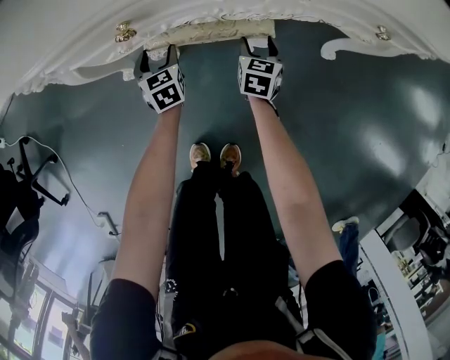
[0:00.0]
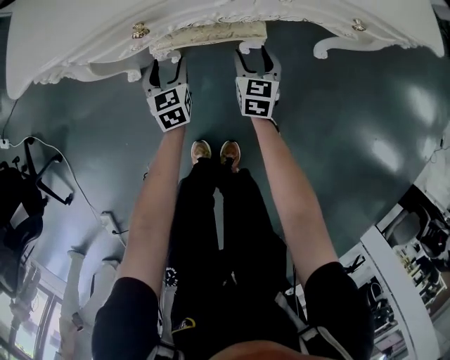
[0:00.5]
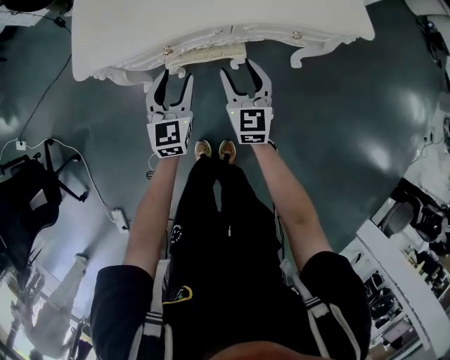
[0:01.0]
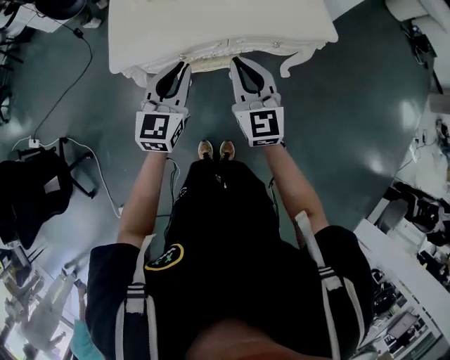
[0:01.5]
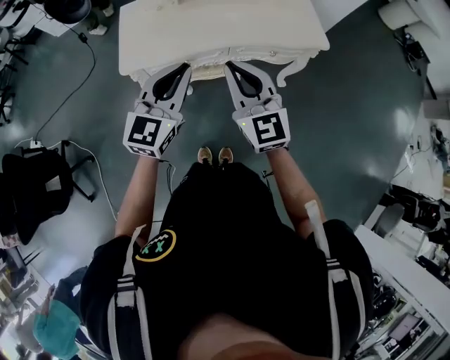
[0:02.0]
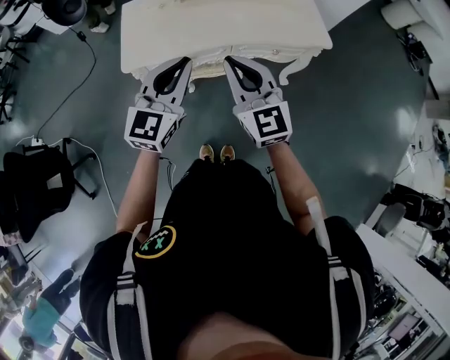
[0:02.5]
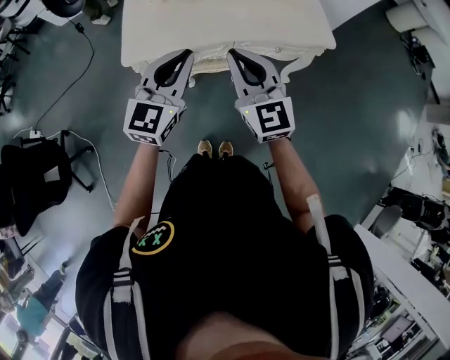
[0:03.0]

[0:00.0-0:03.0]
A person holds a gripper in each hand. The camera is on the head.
0:00.0 to 0:01.5: Both grippers travel together upward, some 70 cm. The left gripper turns by about 50 degrees, and closes up, while the right gripper points its fingers about 30 degrees further upward, and closes up.
0:01.5 to 0:03.0: Both grippers travel together upward, some 10 cm.

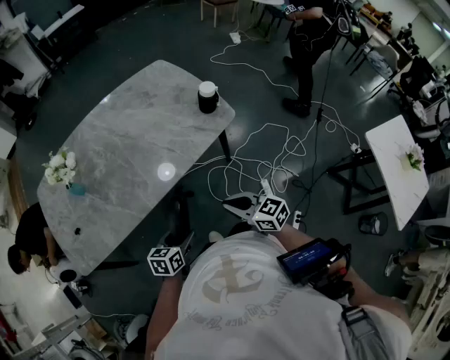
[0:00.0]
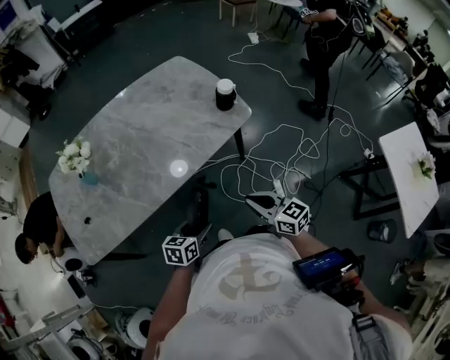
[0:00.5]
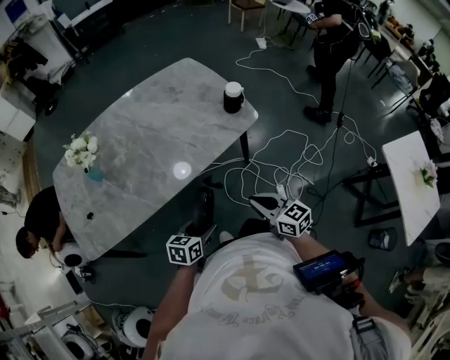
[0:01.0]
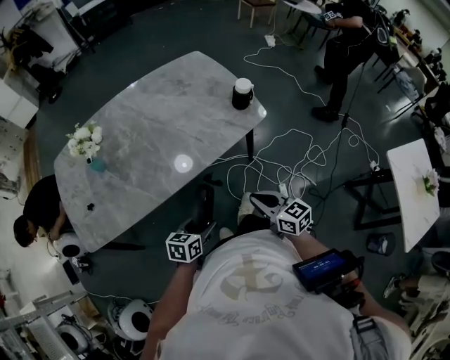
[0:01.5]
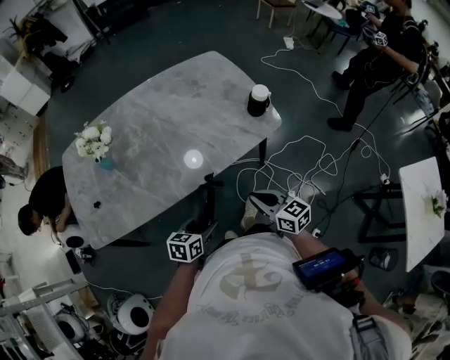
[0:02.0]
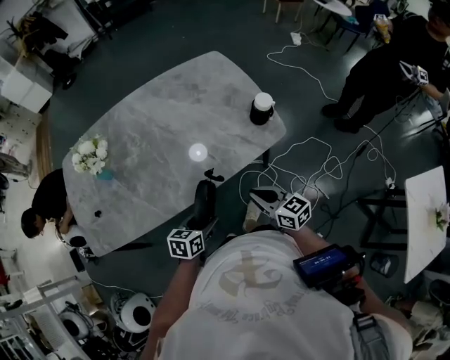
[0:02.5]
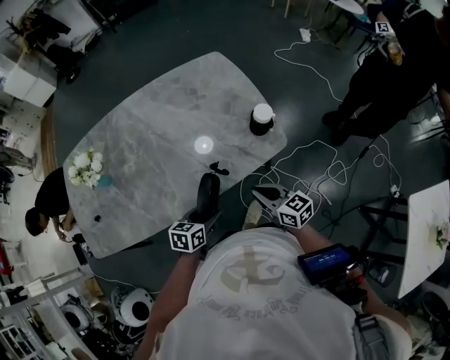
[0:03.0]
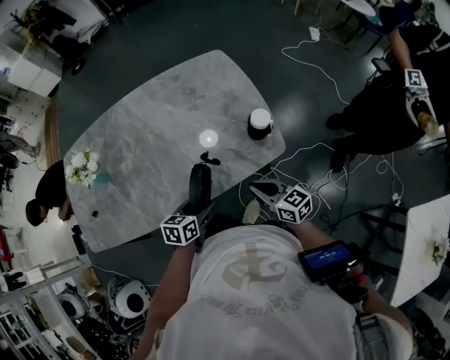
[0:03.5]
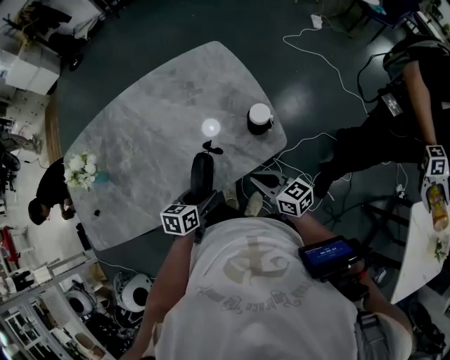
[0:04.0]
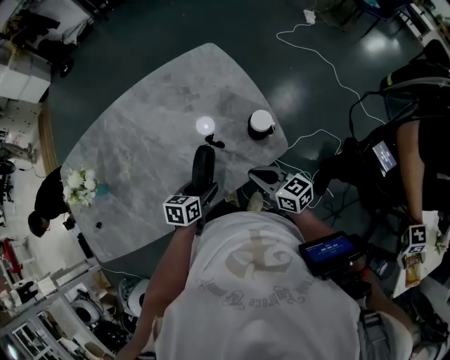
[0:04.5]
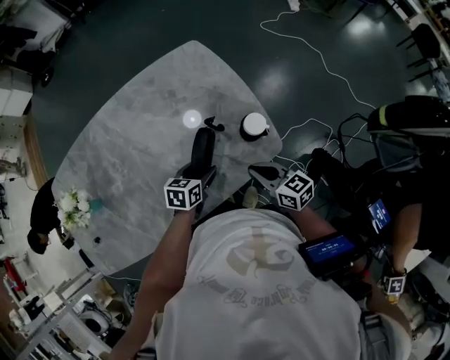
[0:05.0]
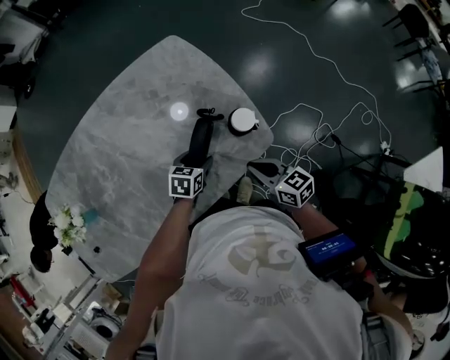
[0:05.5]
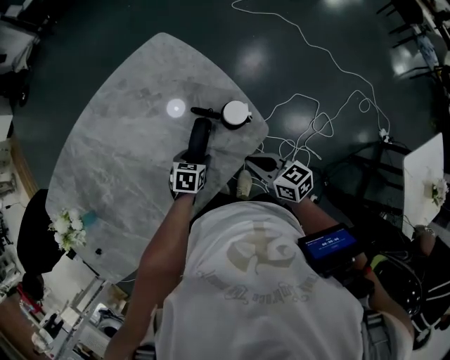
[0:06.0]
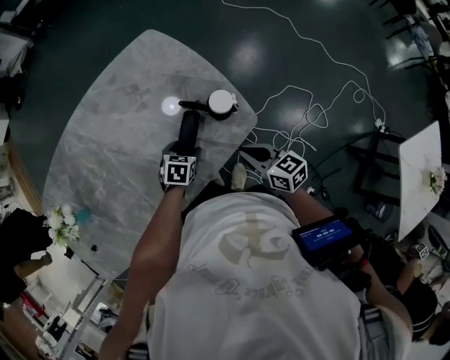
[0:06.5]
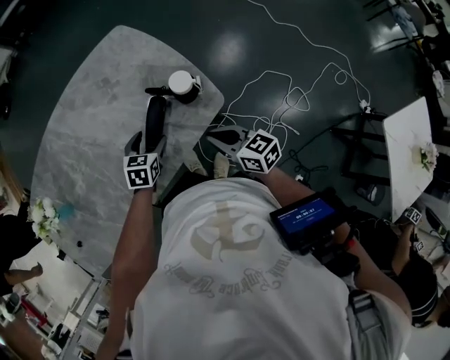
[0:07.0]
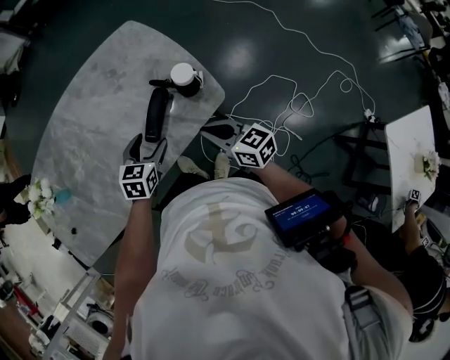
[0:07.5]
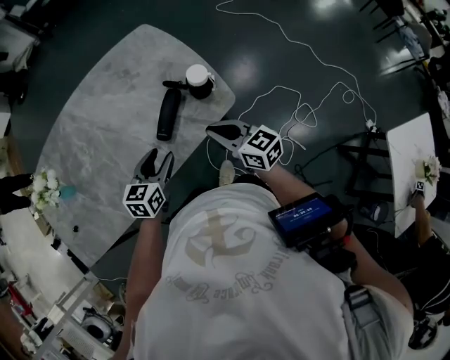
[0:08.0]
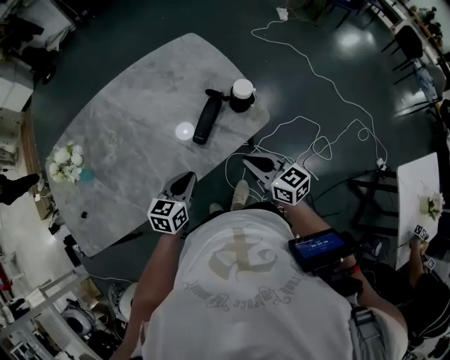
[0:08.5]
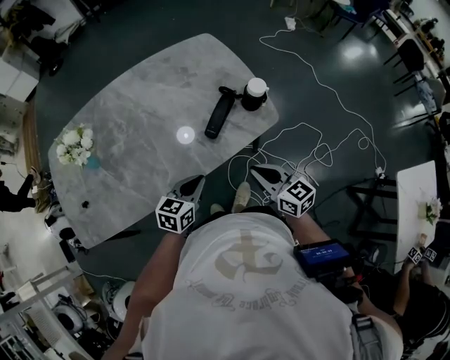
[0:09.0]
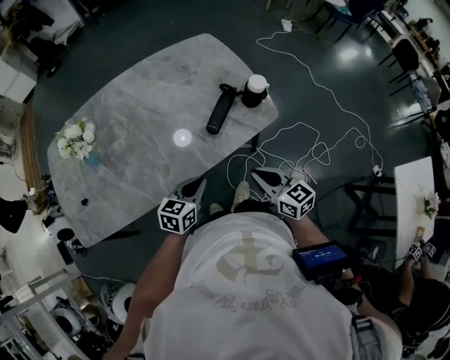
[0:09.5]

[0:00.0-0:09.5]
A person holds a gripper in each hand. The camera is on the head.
0:00.0 to 0:02.0: The right gripper heads forward, covering roughly 5 cm.
0:02.0 to 0:04.0: Both grippers travel together forward and to the right, some 20 cm.
0:04.0 to 0:05.5: The right gripper shifts about 5 cm forward, while the left gripper goes approximately 15 cm forward and downward, and swivels some 20 degrees.
0:05.5 to 0:07.5: The left gripper travels upward and backward by about 10 cm, while the right gripper changes place by approximately 5 cm.
0:07.5 to 0:09.5: The grippers both shift backward and to the left by approximately 15 cm. The left gripper rotates roughly 20 degrees, and closes up.

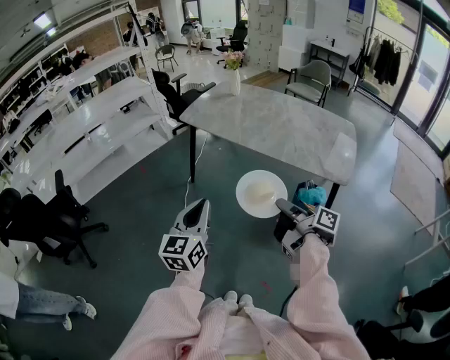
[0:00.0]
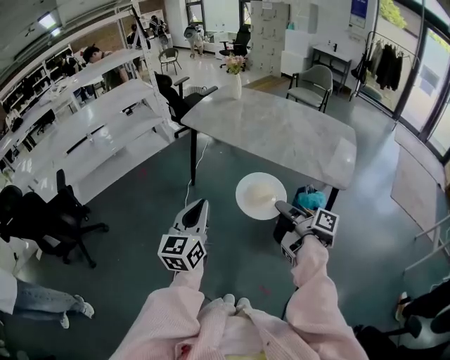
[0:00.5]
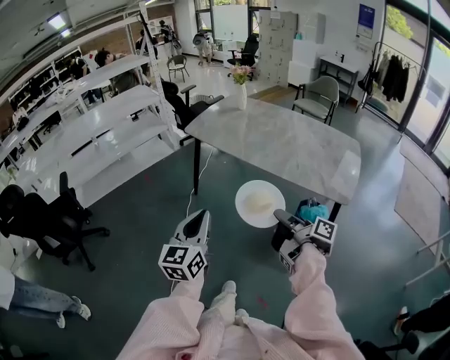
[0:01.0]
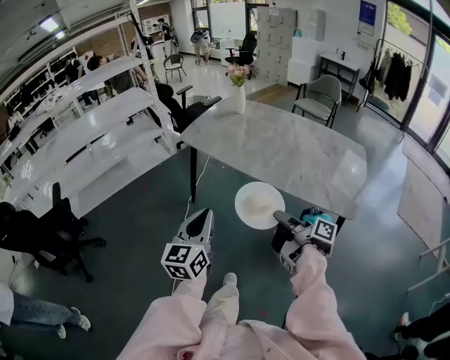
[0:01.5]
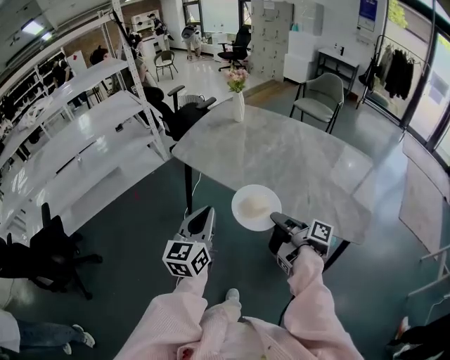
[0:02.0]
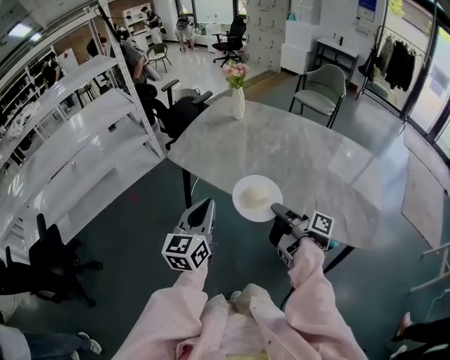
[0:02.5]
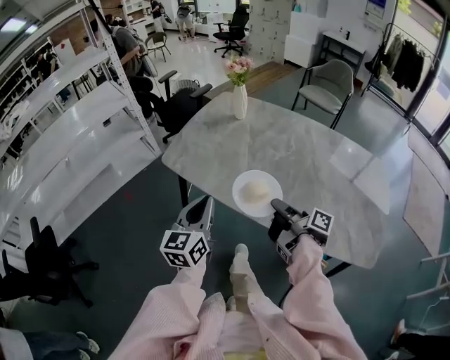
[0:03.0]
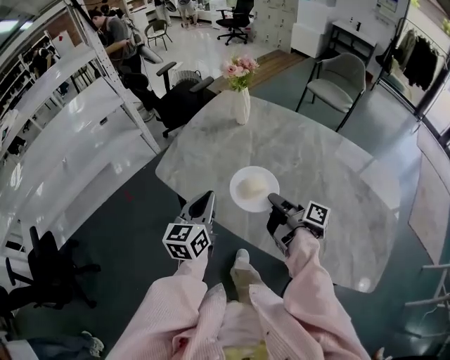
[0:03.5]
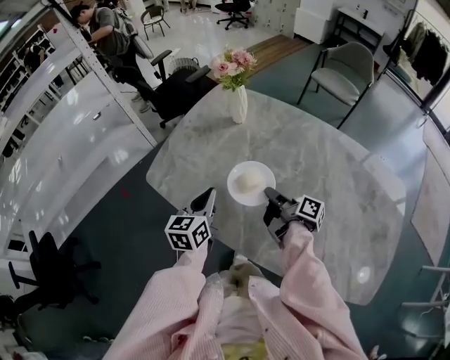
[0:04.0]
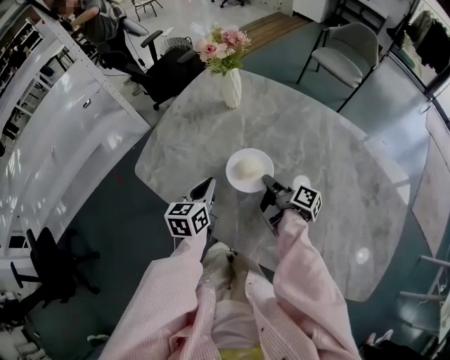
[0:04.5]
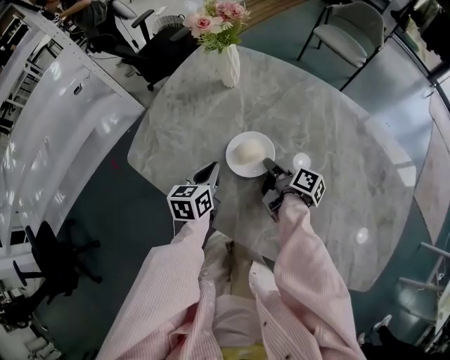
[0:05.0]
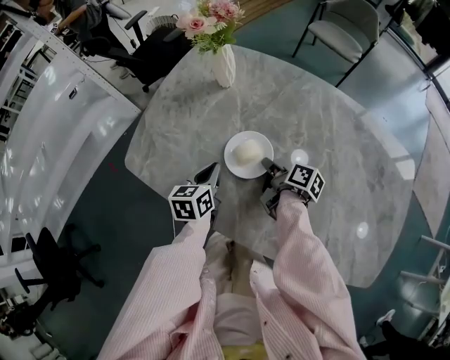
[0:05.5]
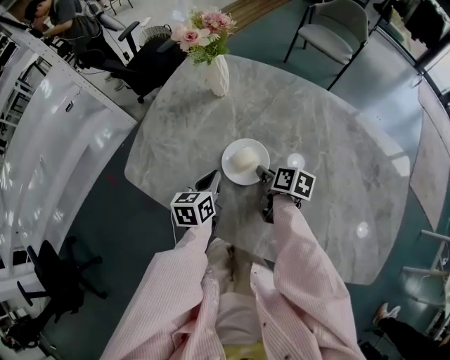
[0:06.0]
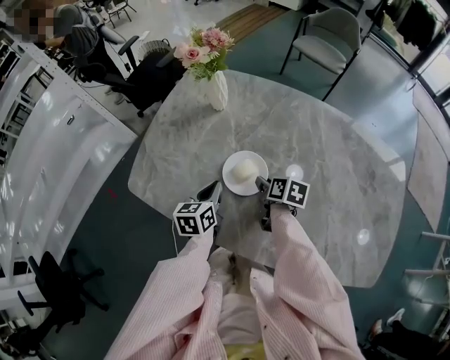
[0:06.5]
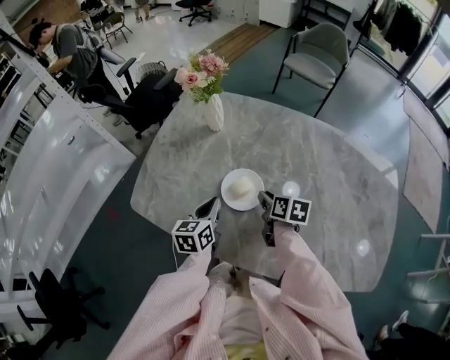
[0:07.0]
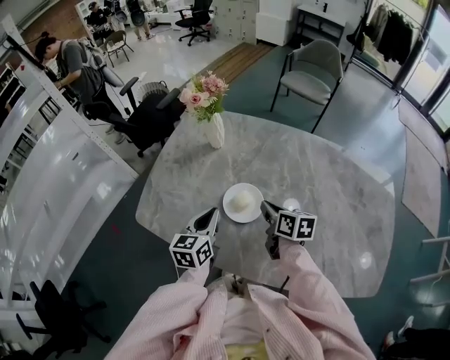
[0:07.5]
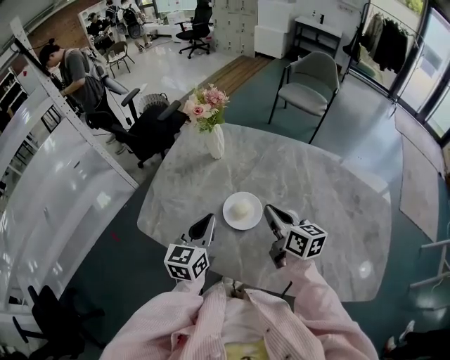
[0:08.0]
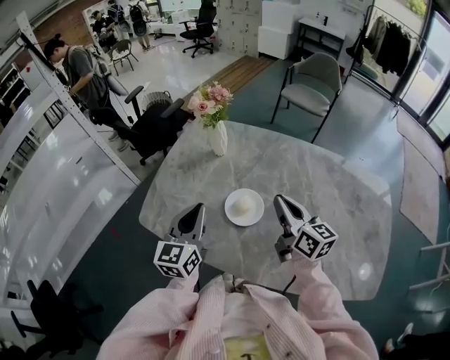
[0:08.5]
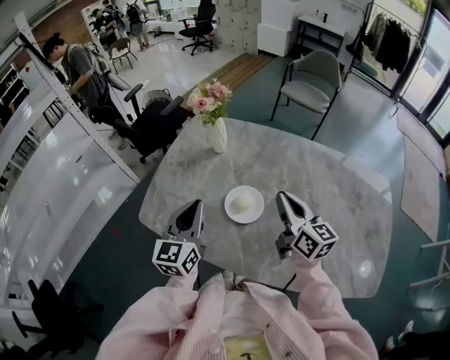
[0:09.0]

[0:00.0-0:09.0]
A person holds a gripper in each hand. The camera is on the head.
0:00.0 to 0:02.0: The left gripper ends up approximately 30 cm from where it was.
0:02.0 to 0:04.5: The left gripper shifts by some 50 cm, and turns by some 30 degrees.
0:07.0 to 0:09.0: The left gripper shifts approximately 15 cm upward, and rotates roughly 30 degrees.

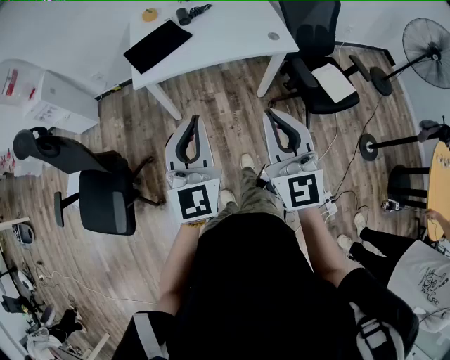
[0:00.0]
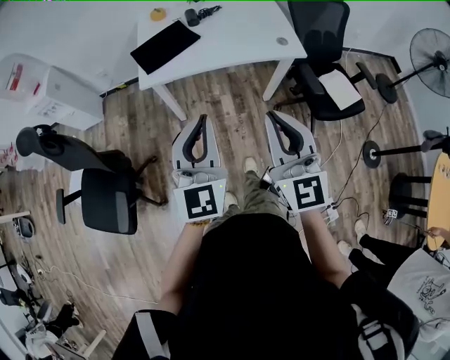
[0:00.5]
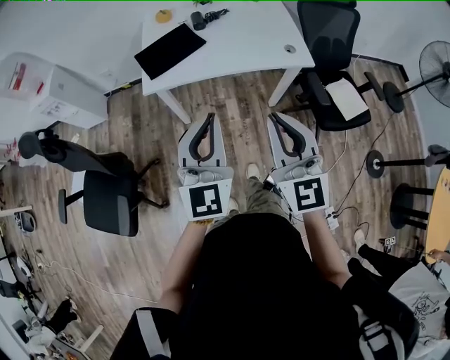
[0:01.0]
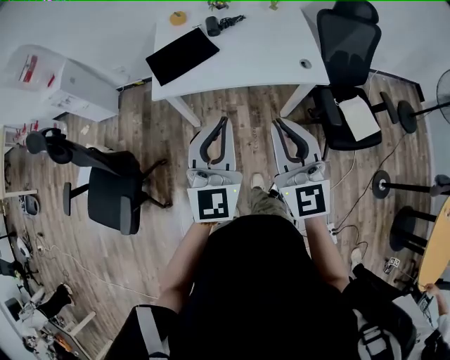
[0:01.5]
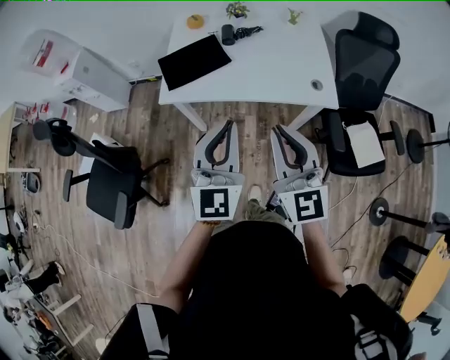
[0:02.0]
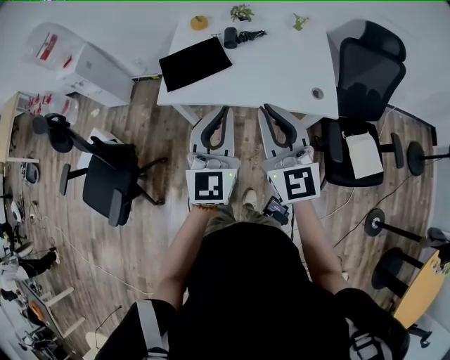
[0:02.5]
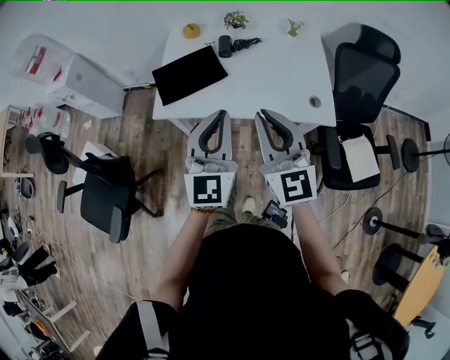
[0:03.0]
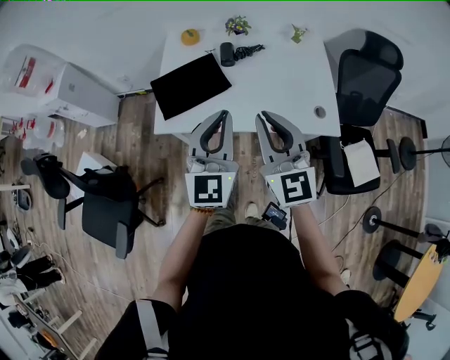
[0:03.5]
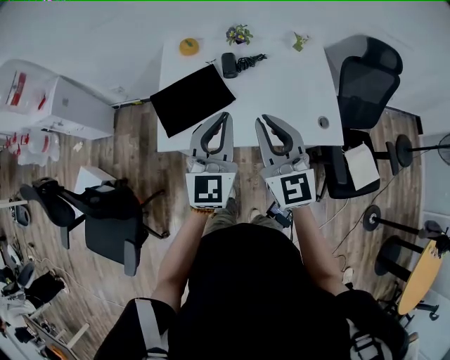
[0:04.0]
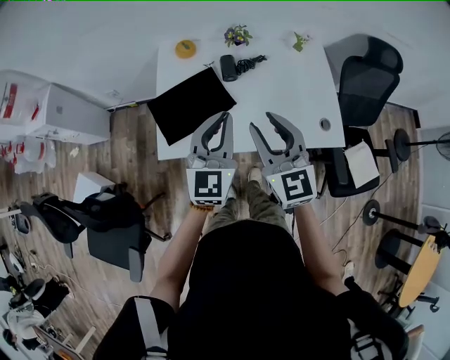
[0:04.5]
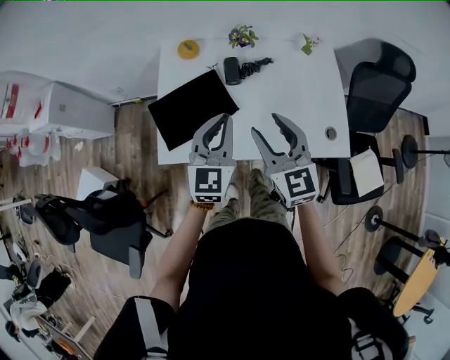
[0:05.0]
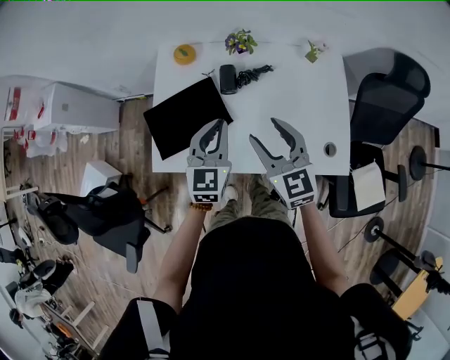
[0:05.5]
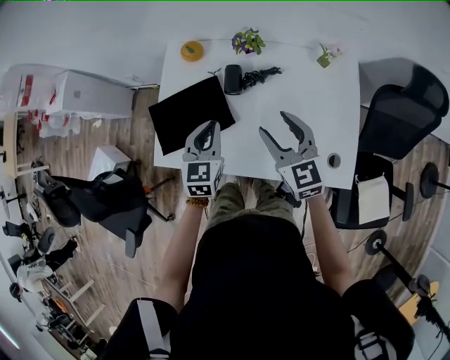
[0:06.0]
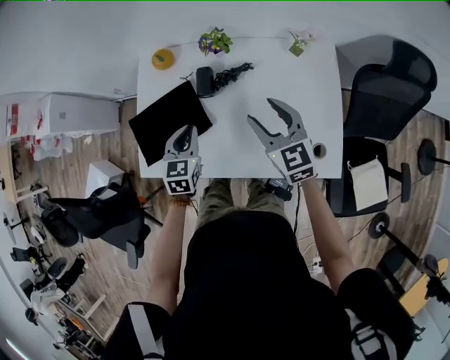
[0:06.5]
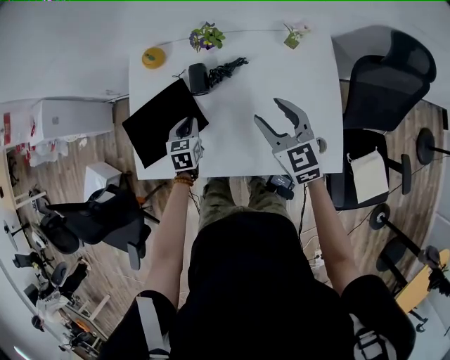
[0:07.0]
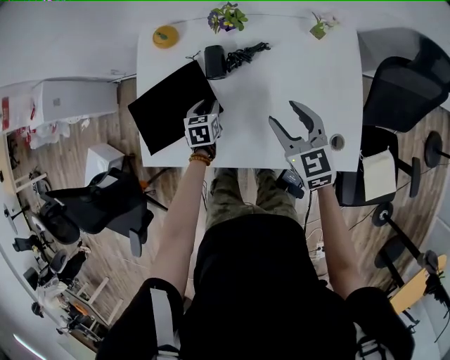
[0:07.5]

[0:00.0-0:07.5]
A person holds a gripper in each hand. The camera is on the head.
0:00.0 to 0:02.0: The right gripper is displaced forward by approximately 20 cm, while the left gripper travels forward and to the right by roughly 20 cm.
0:02.0 to 0:04.0: Both grippers move forward, approximately 25 cm.
0:04.0 to 0:05.5: The left gripper is displaced forward and downward by roughly 20 cm, and turns by roughly 20 degrees. The right gripper travels forward, downward and to the right by roughly 20 cm, rotates some 20 degrees, and opens up.
0:05.5 to 0:07.5: The right gripper shifts approximately 15 cm downward and to the right; the left gripper goes about 30 cm downward, tips its fingers downward by about 30 degrees, and opens.
